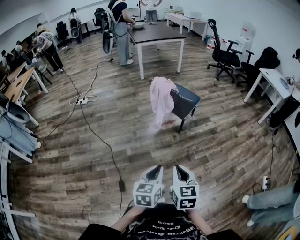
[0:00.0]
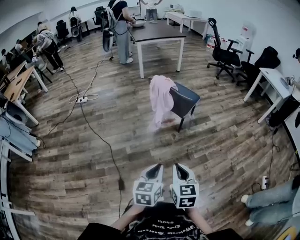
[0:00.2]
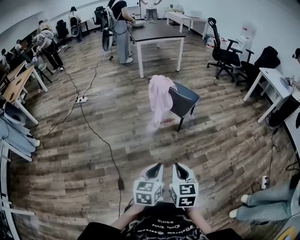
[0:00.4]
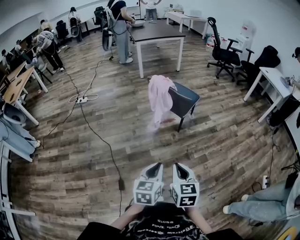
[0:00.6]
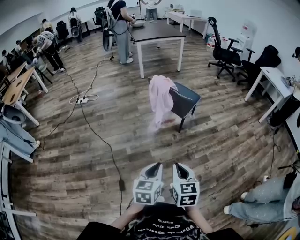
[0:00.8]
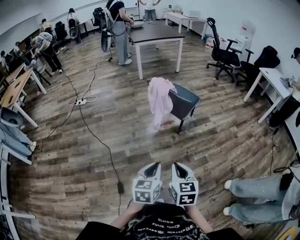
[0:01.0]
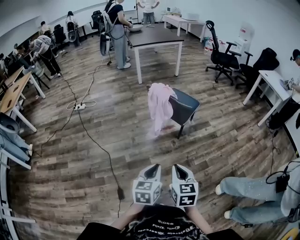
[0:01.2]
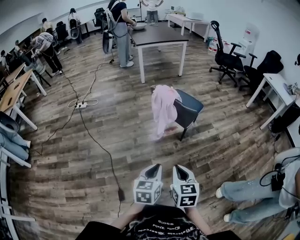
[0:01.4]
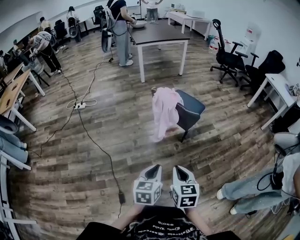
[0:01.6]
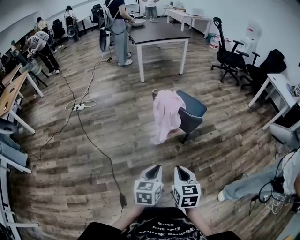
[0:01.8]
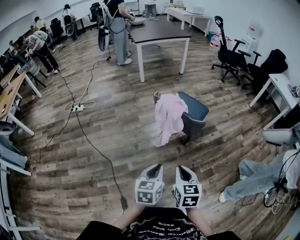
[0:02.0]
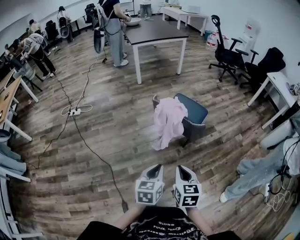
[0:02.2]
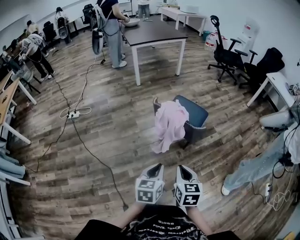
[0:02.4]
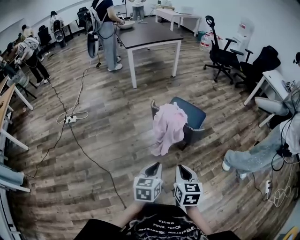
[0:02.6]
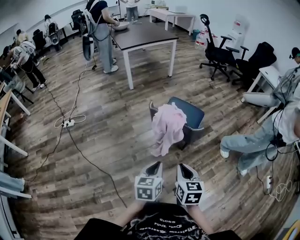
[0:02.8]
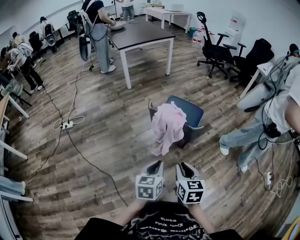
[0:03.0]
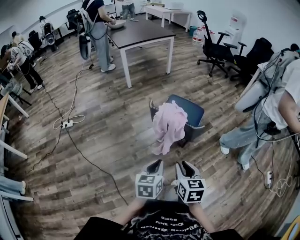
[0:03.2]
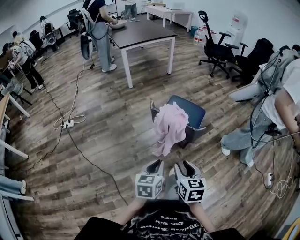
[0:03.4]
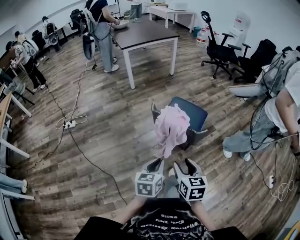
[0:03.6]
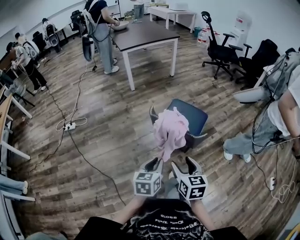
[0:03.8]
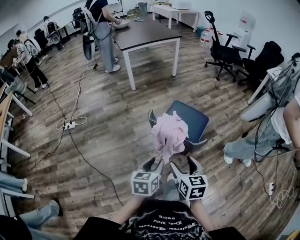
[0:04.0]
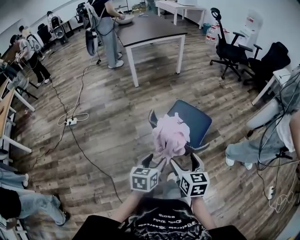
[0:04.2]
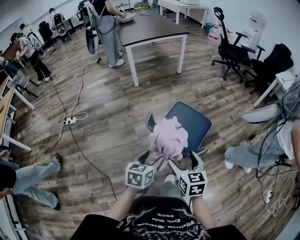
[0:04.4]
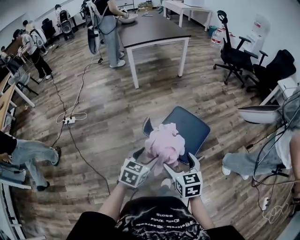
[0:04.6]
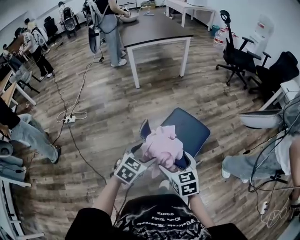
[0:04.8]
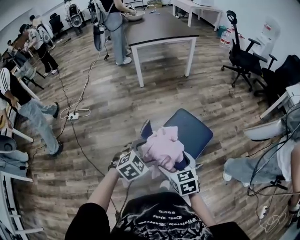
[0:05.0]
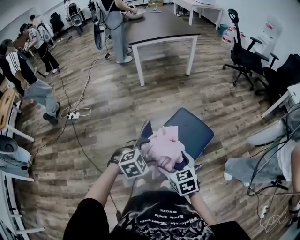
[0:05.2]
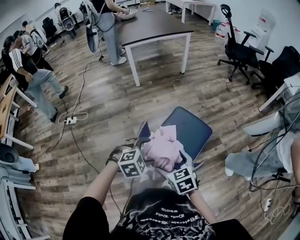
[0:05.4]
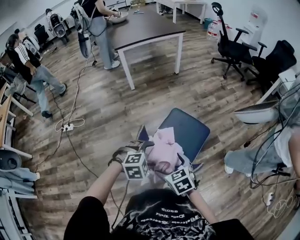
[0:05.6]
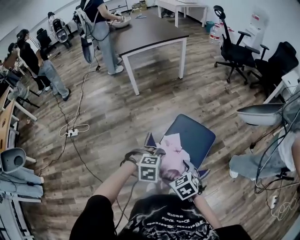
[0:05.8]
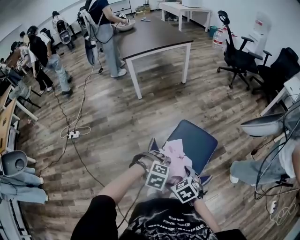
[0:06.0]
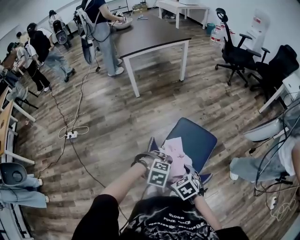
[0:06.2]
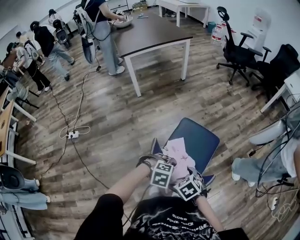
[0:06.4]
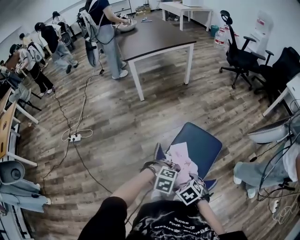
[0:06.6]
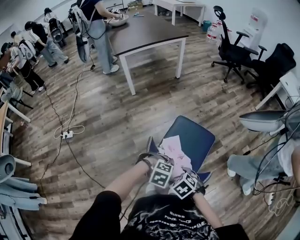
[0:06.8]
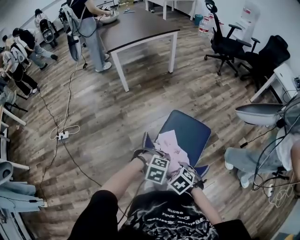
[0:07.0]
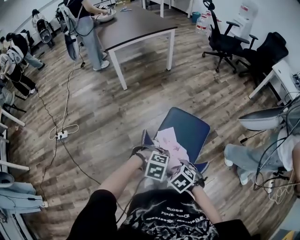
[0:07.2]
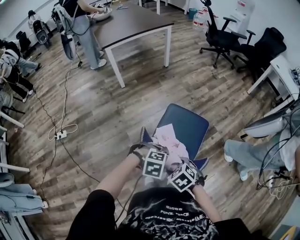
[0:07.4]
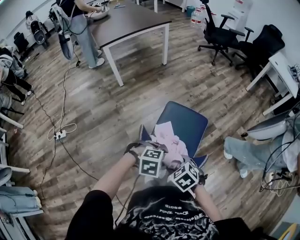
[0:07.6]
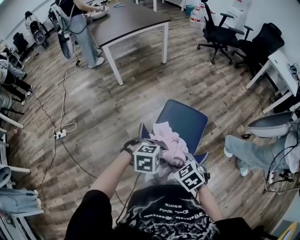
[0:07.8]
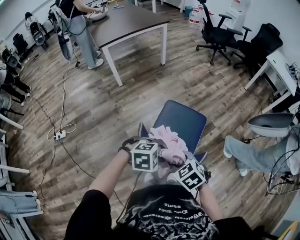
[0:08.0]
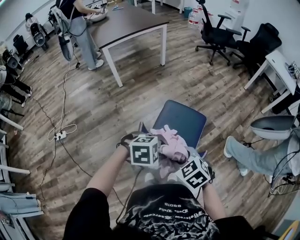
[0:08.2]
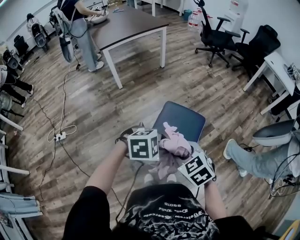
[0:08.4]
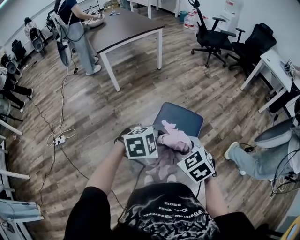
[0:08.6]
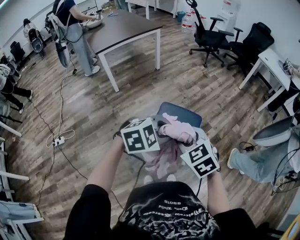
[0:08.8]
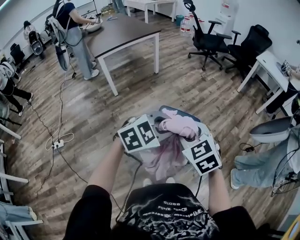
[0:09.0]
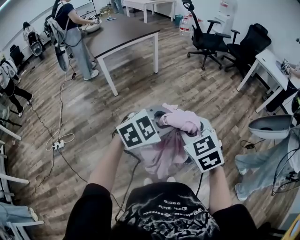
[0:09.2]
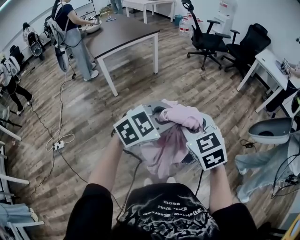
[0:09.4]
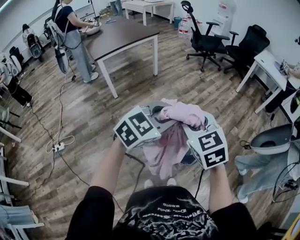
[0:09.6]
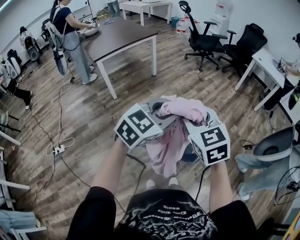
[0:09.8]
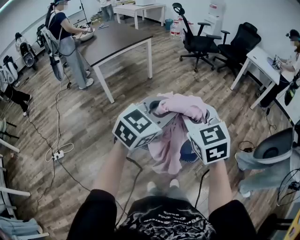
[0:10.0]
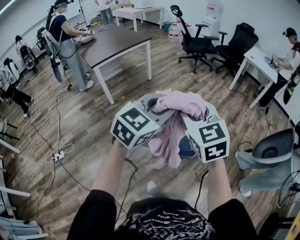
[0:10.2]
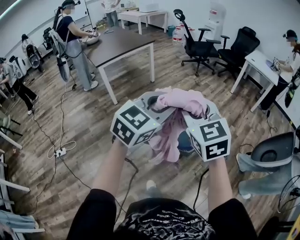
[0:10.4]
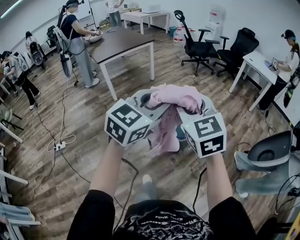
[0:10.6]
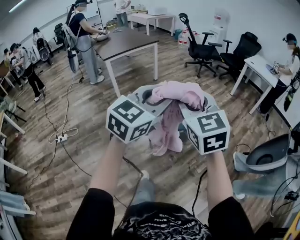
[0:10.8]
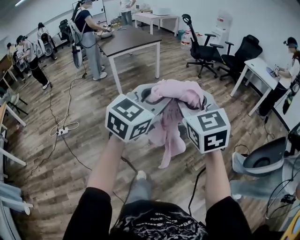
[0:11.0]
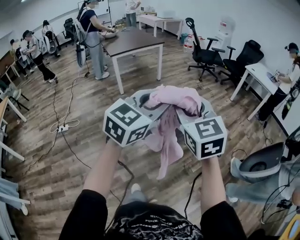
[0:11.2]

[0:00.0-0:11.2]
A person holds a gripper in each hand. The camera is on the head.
0:00.0 to 0:01.6: Both grippers move forward, approximately 15 cm.
0:01.6 to 0:03.2: The two grippers go some 20 cm forward and to the left.
0:03.2 to 0:04.8: Both grippers travel together forward, some 25 cm. The left gripper rotates roughly 30 degrees, and opens up. Meanwhile the right gripper swivels approximately 30 degrees, and opens.
0:04.8 to 0:06.4: The two grippers go roughly 10 cm downward. The right gripper rotates roughly 30 degrees, while the left gripper swivels some 70 degrees.
0:06.4 to 0:08.0: The two grippers go roughly 10 cm upward. The right gripper closes up. Meanwhile the left gripper closes.
0:08.0 to 0:09.6: Both grippers move upward, roughly 20 cm. The right gripper rotates about 30 degrees. The left gripper tips its fingers upward by about 30 degrees.
0:09.6 to 0:11.2: Both grippers travel together backward and upward, some 30 cm. The left gripper swivels about 30 degrees.

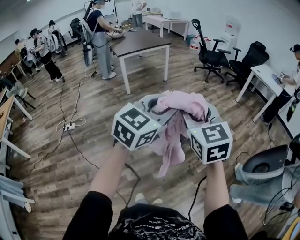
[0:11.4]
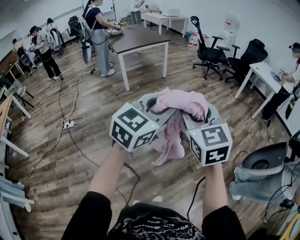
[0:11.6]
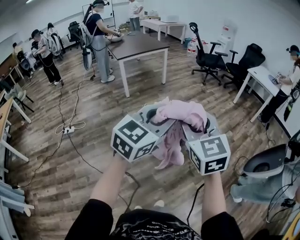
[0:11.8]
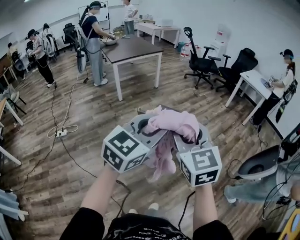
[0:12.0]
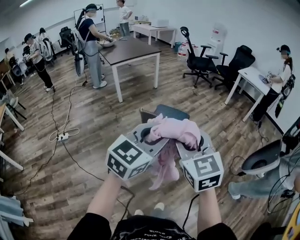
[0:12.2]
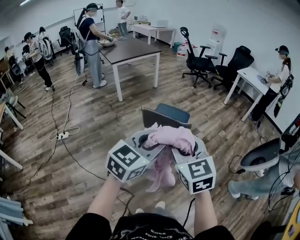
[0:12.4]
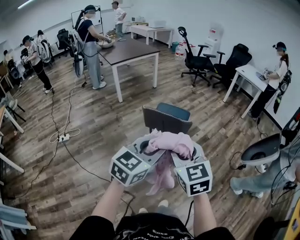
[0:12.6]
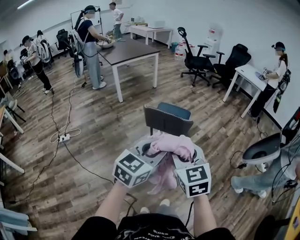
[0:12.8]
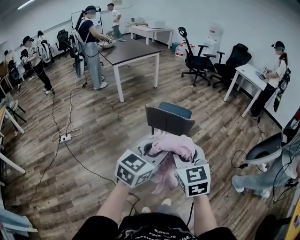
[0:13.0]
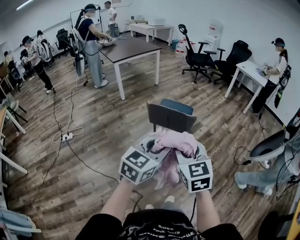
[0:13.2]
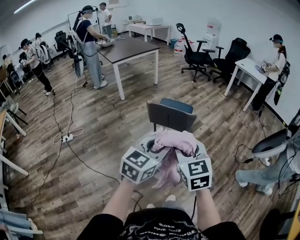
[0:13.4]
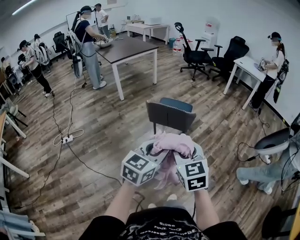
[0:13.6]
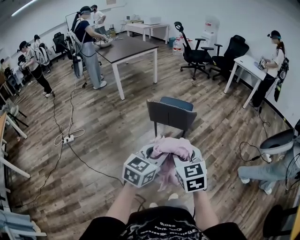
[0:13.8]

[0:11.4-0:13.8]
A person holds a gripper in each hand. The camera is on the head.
0:11.4 to 0:12.6: The grippers both shift backward and downward by roughly 20 cm.
0:12.6 to 0:13.8: Both grippers travel together downward, about 10 cm.

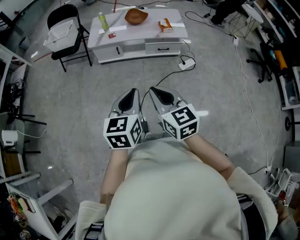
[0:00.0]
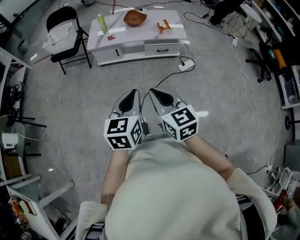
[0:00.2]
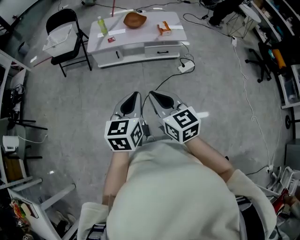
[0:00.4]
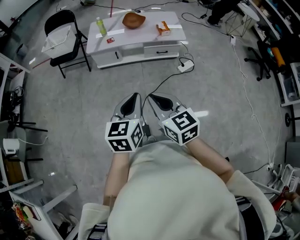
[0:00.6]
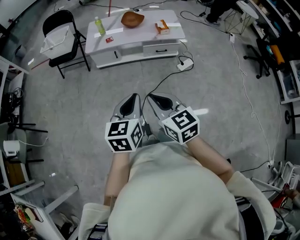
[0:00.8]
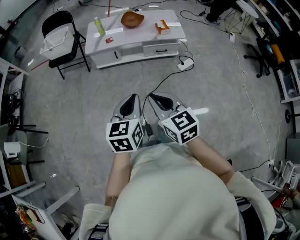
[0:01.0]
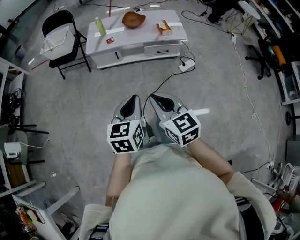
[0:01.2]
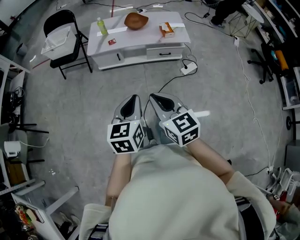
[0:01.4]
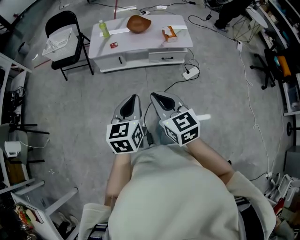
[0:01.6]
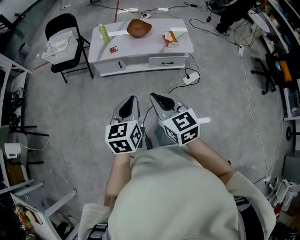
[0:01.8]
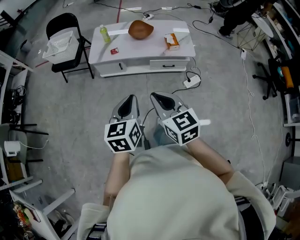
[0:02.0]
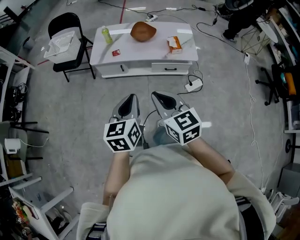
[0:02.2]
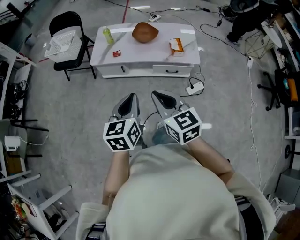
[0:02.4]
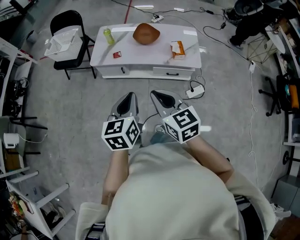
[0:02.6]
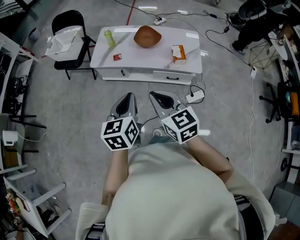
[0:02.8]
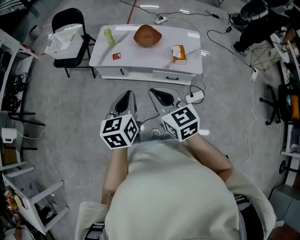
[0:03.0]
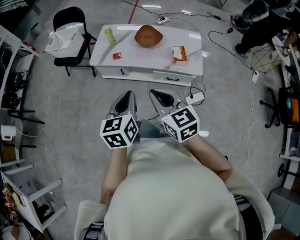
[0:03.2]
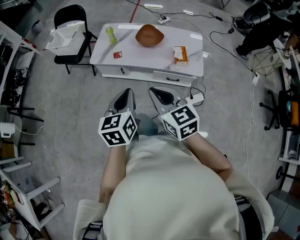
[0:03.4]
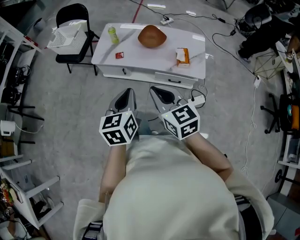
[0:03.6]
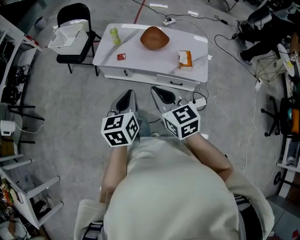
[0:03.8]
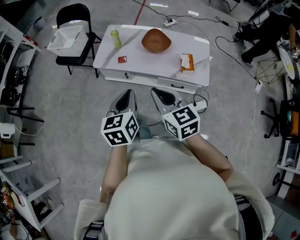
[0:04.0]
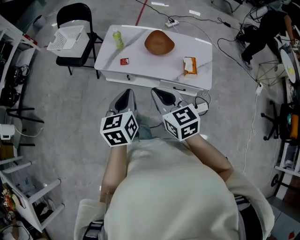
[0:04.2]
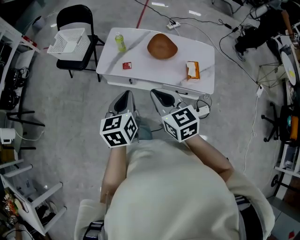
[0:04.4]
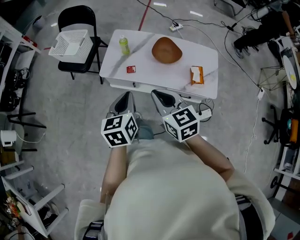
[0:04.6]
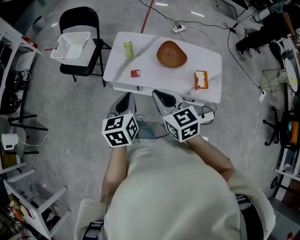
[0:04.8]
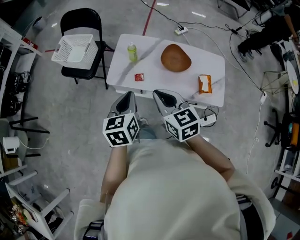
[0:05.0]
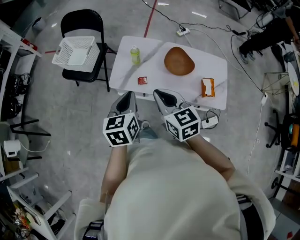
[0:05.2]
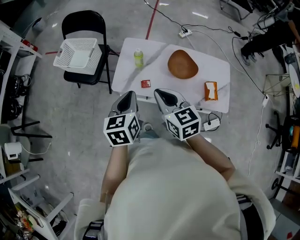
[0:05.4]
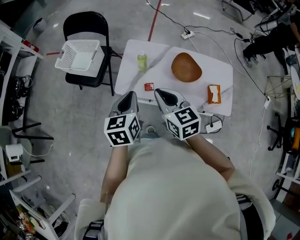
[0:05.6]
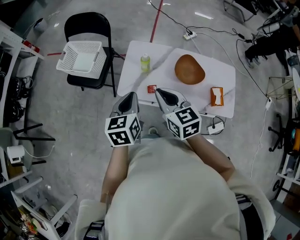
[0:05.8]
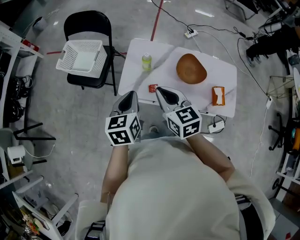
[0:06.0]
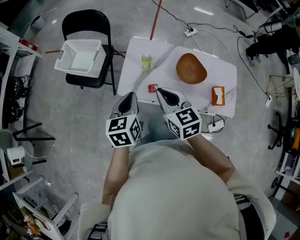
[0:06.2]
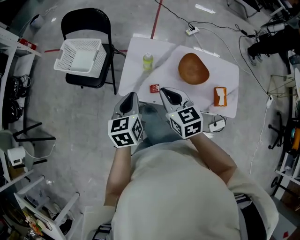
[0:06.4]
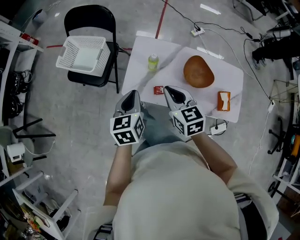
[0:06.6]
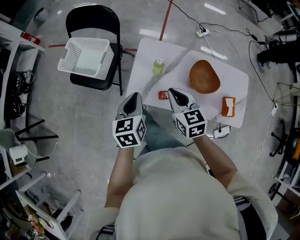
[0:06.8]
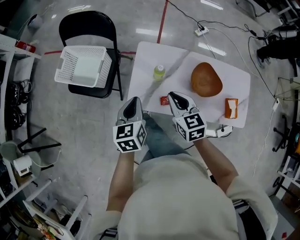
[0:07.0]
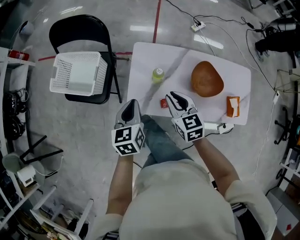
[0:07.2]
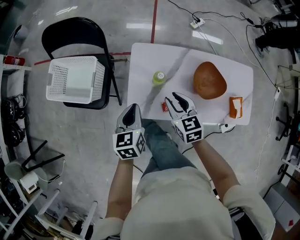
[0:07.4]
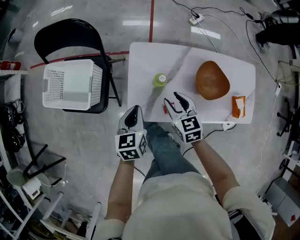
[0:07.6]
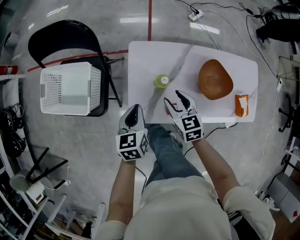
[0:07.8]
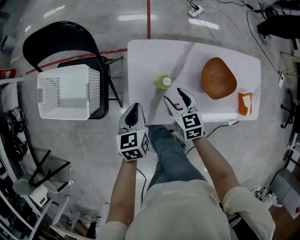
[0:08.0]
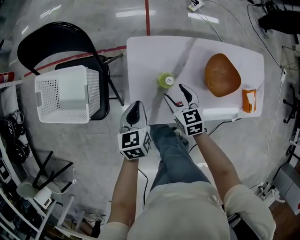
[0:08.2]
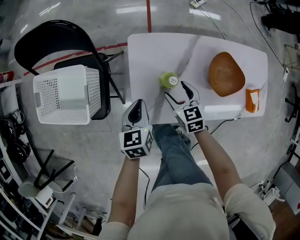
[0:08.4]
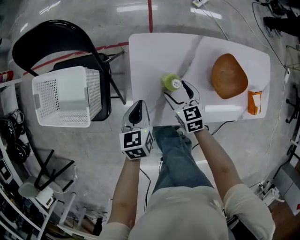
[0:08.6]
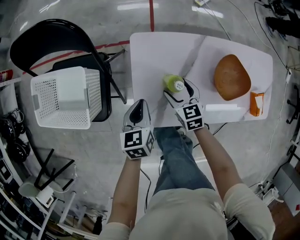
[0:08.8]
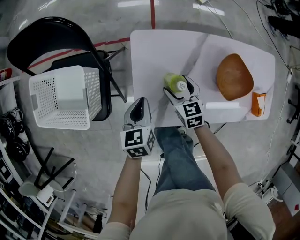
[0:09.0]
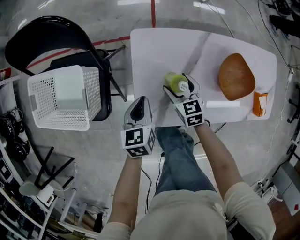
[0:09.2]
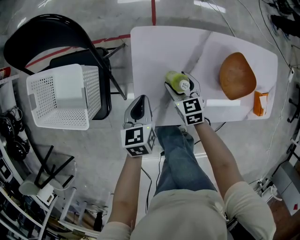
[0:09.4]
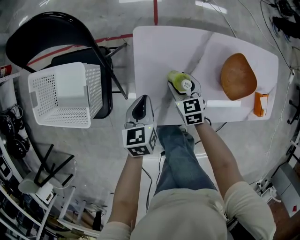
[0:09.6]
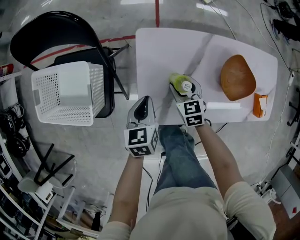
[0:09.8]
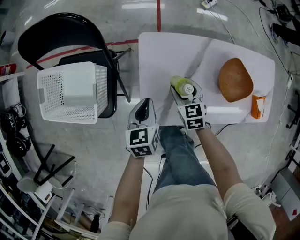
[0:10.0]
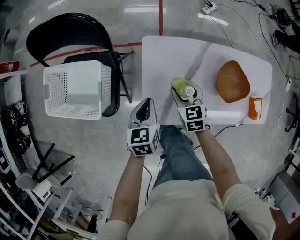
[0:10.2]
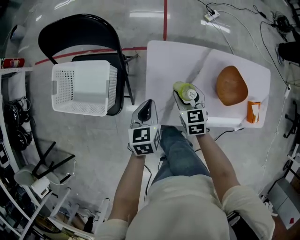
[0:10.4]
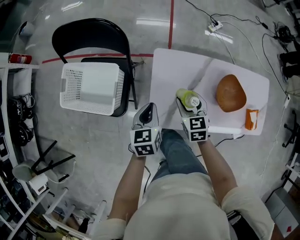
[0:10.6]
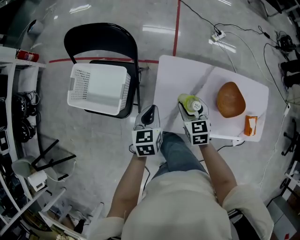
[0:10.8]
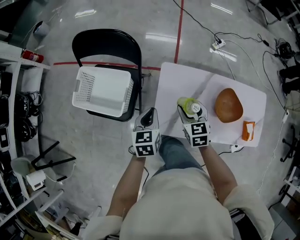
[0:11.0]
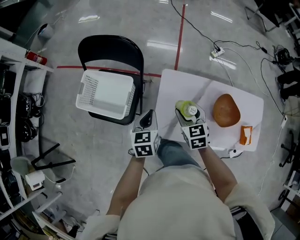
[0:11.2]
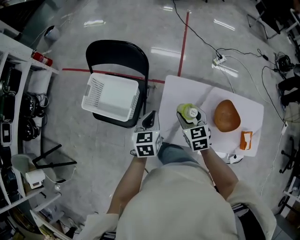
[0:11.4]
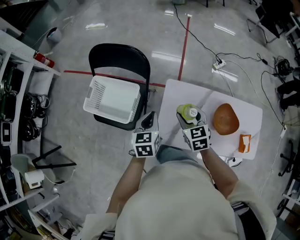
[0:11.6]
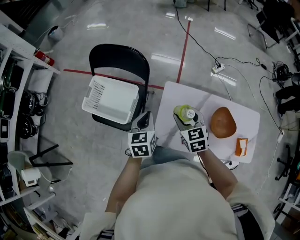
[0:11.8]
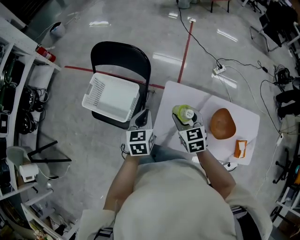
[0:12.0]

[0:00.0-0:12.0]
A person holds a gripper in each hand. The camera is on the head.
0:00.0 to 0:01.6: Both grippers travel together forward, some 10 cm.
0:01.6 to 0:03.0: Both grippers move forward and to the right, about 25 cm.
0:03.0 to 0:04.4: Both grippers travel together forward, some 15 cm.
0:04.4 to 0:06.0: Both grippers move forward and to the left, roughly 30 cm.
0:06.0 to 0:07.6: The left gripper shifts about 25 cm forward and downward. Meanwhile the right gripper is displaced downward and forward by some 30 cm, and opens its fingers.
0:07.6 to 0:09.0: Both grippers travel together downward and forward, about 15 cm. The right gripper opens up.
0:09.0 to 0:10.4: Both grippers move upward, some 10 cm.
0:10.4 to 0:12.0: The right gripper heads upward, covering some 20 cm; the left gripper shifts roughly 15 cm upward and to the left.
